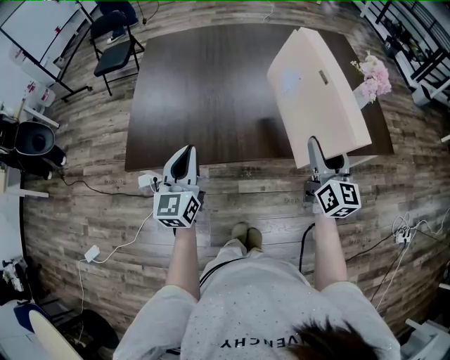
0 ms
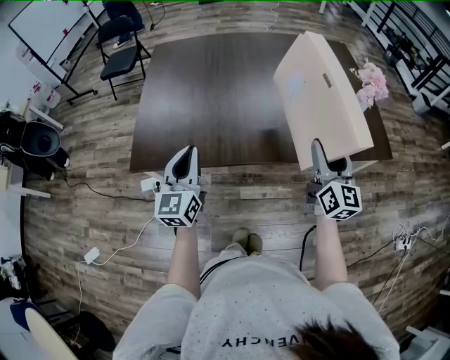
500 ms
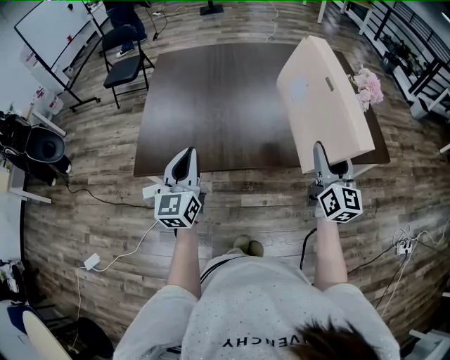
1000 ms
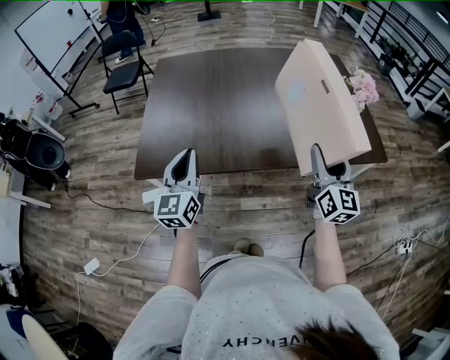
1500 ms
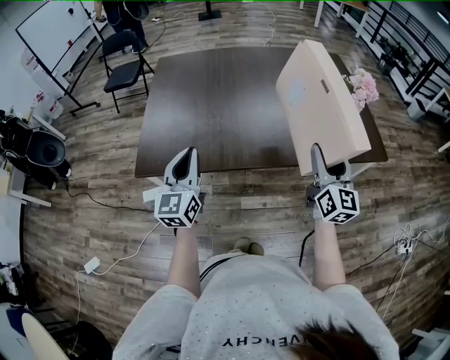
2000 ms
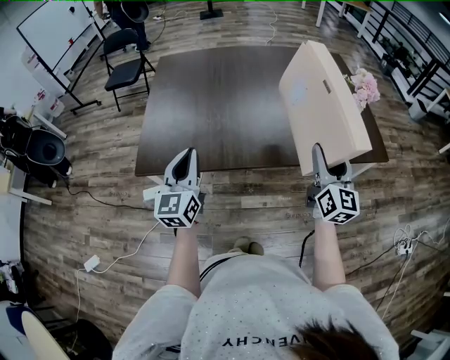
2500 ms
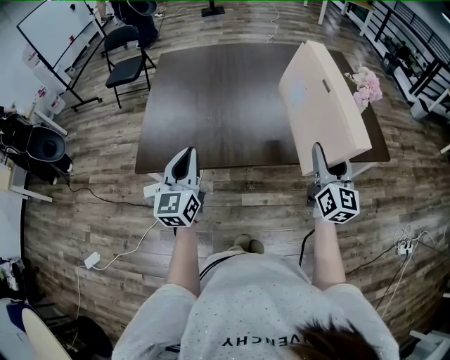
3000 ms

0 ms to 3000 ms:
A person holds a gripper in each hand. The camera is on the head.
0 ms to 1500 ms: The right gripper moves roughly 5 cm, while the left gripper moves about 5 cm.
1500 ms to 3000 ms: The grippers stay close to where they were, moving slightly.

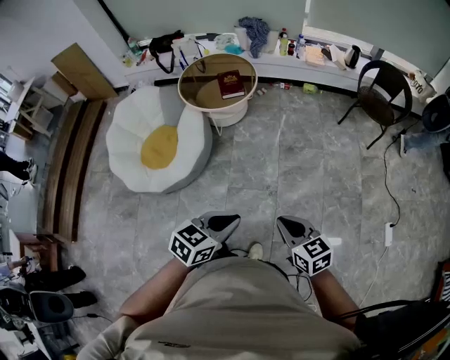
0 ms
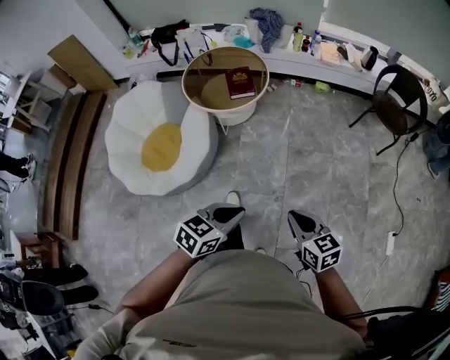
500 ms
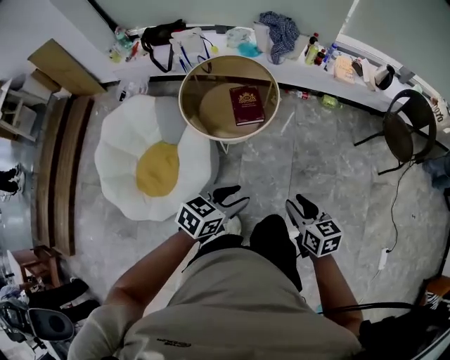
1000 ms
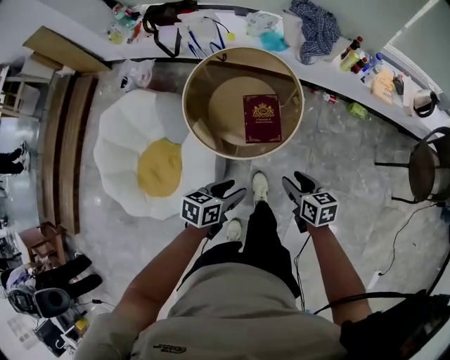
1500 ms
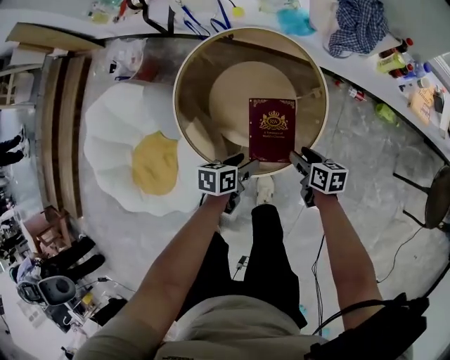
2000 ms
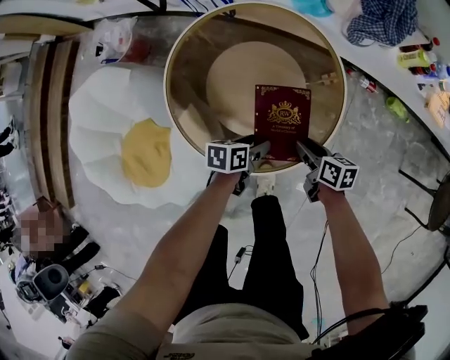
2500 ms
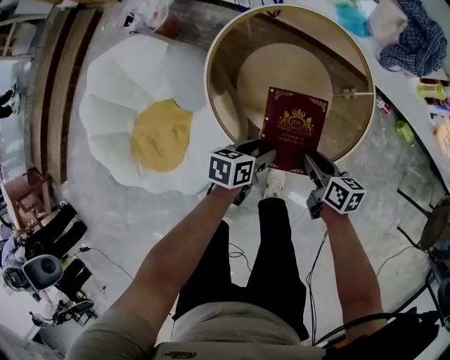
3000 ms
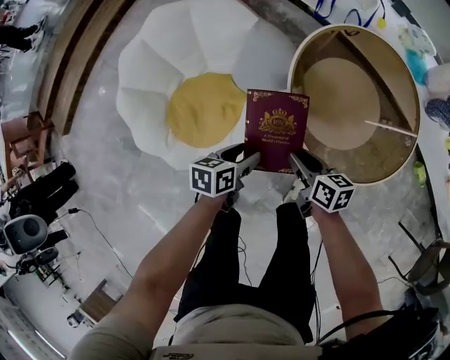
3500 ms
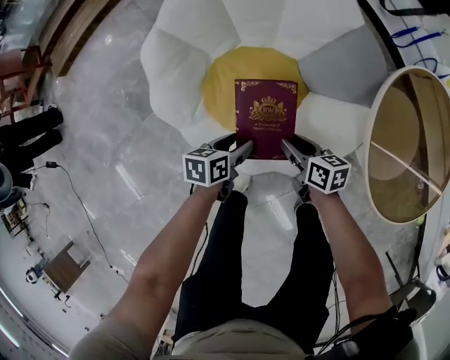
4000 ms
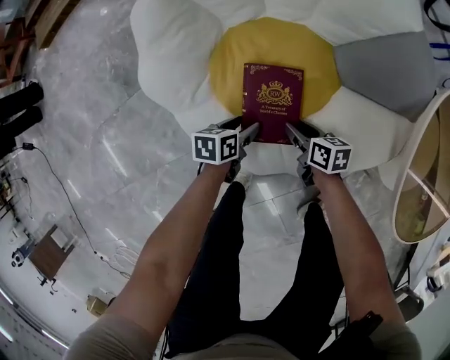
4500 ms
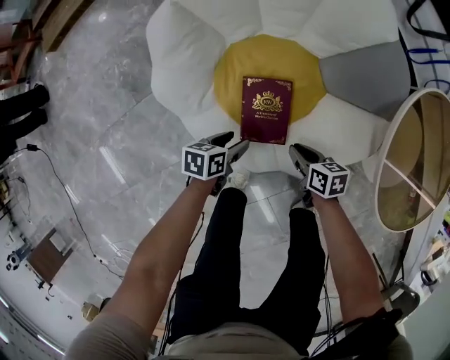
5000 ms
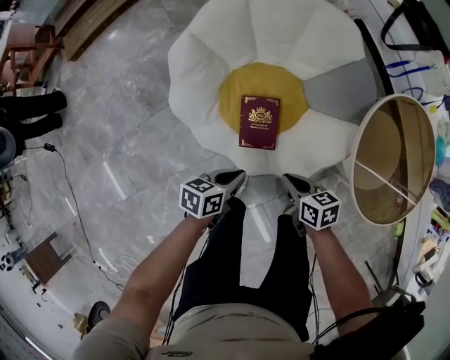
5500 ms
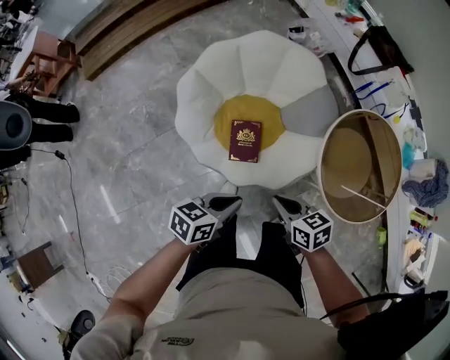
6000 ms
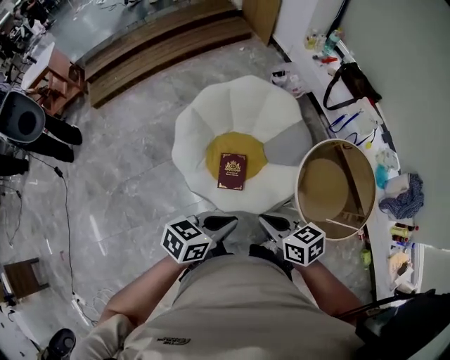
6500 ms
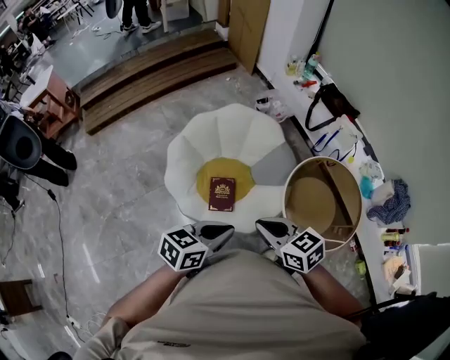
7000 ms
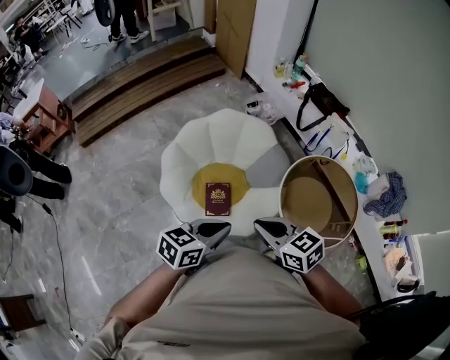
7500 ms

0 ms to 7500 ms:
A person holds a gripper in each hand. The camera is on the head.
0 ms to 2000 ms: The two grippers travel together, forward, roughly 90 cm. The left gripper twists some 50 degrees counterclockwise, seen from behind, and opens up. The right gripper changes its angle by roughly 40 degrees, and opens.
2000 ms to 4000 ms: The left gripper heads downward, covering some 5 cm, and moves roughly 5 cm to the right and comes back. Meanwhile the right gripper moves left and right over approximately 10 cm, changing direction 2 times, and closes up.
4000 ms to 5500 ms: The two grippers go approximately 10 cm upward. The right gripper closes its fingers. Meanwhile the left gripper closes up.
5500 ms to 7500 ms: The grippers both shift upward by roughly 40 cm. The left gripper swivels roughly 30 degrees. Meanwhile the right gripper swivels about 30 degrees.

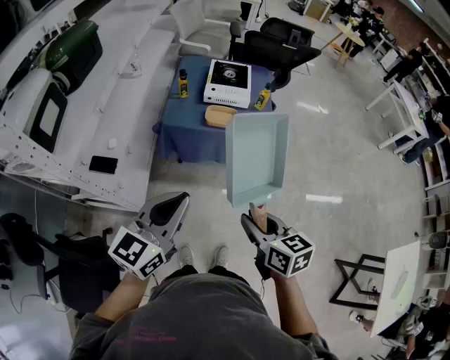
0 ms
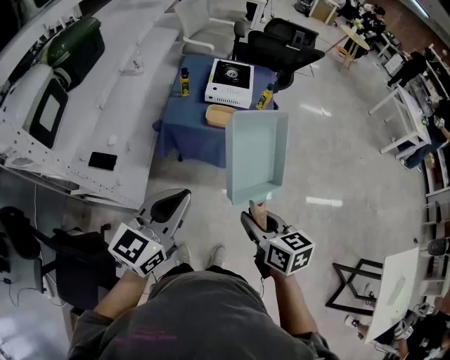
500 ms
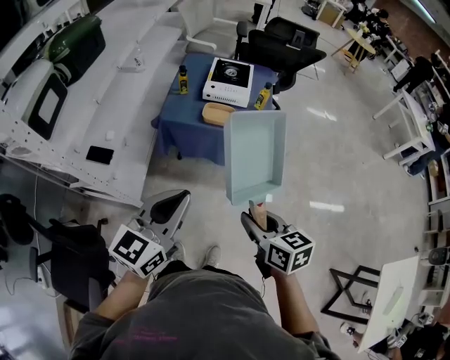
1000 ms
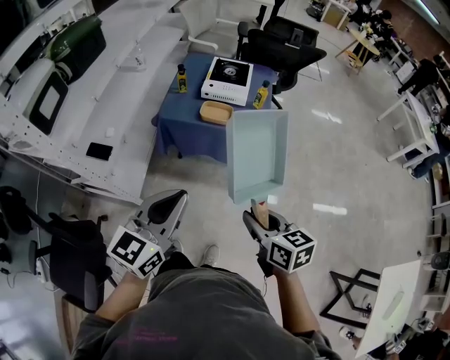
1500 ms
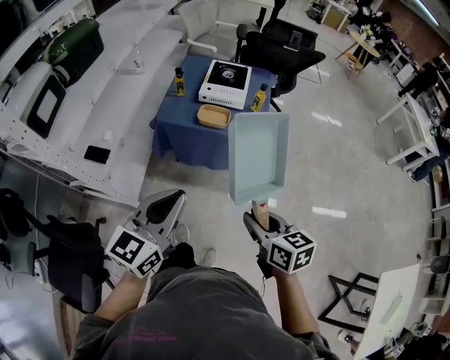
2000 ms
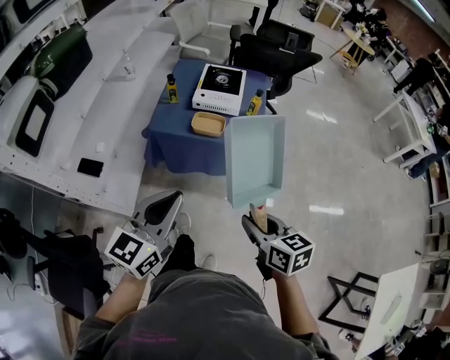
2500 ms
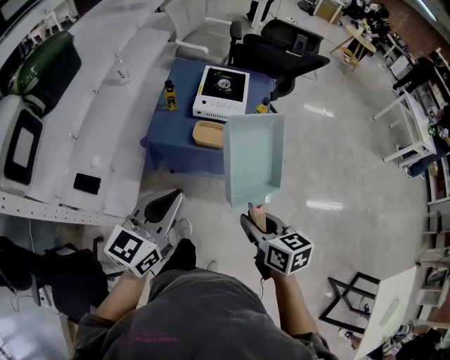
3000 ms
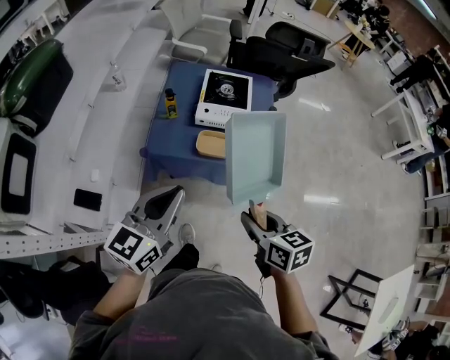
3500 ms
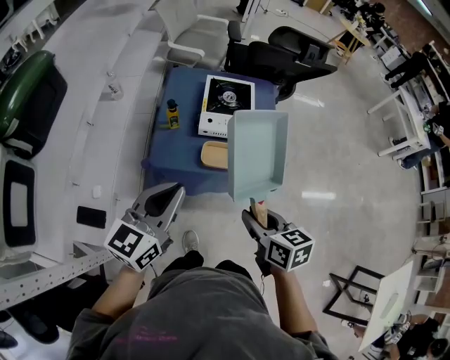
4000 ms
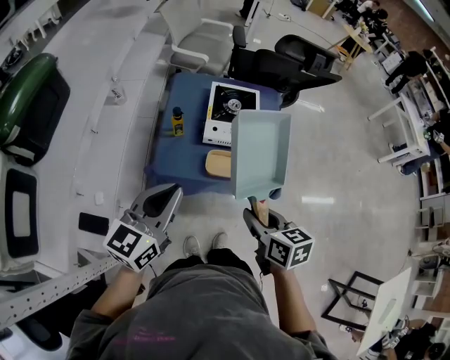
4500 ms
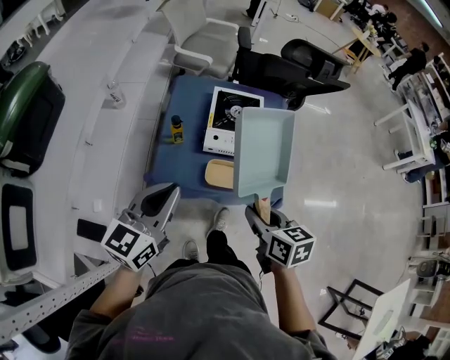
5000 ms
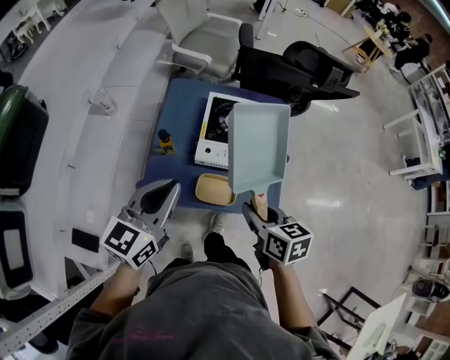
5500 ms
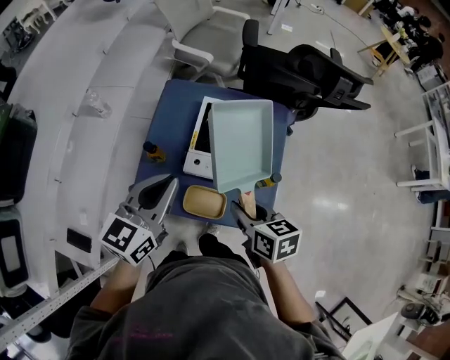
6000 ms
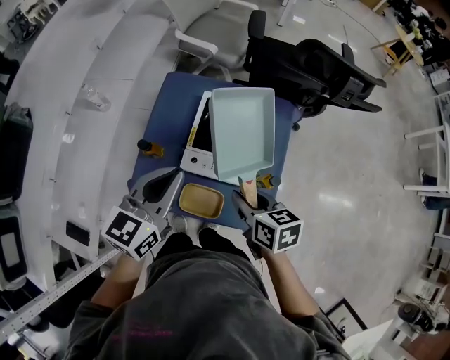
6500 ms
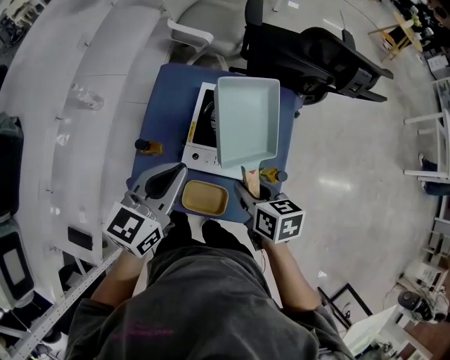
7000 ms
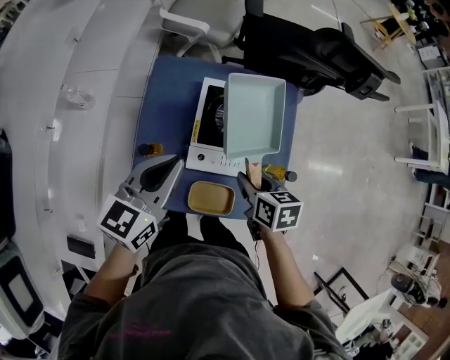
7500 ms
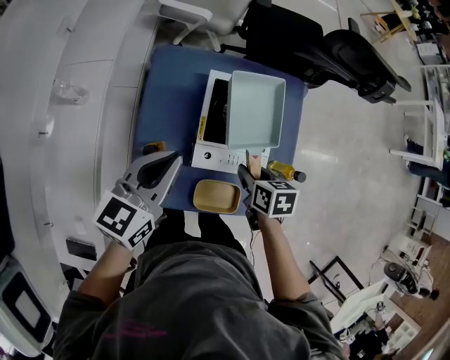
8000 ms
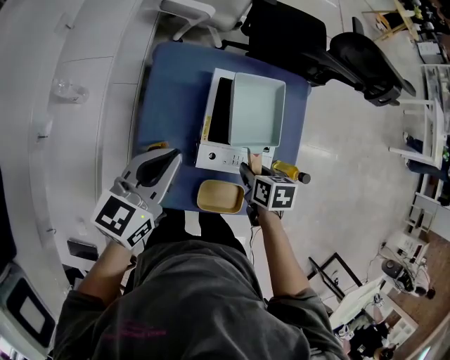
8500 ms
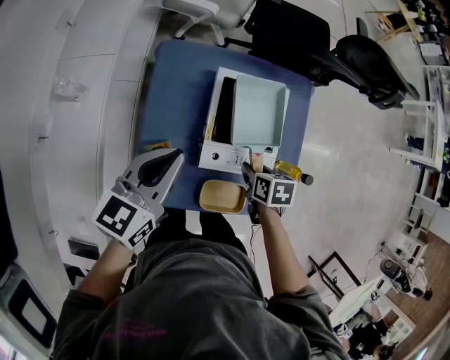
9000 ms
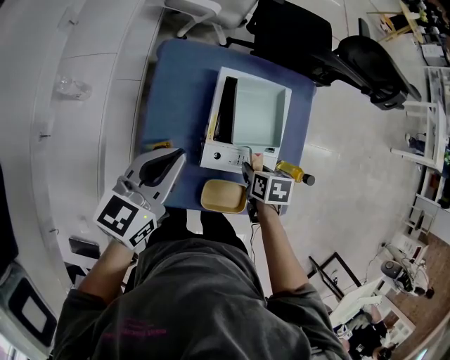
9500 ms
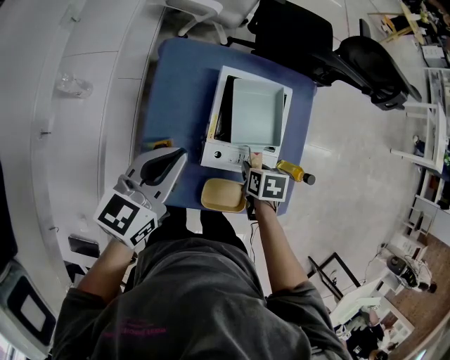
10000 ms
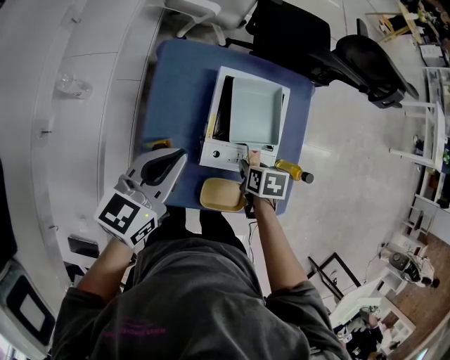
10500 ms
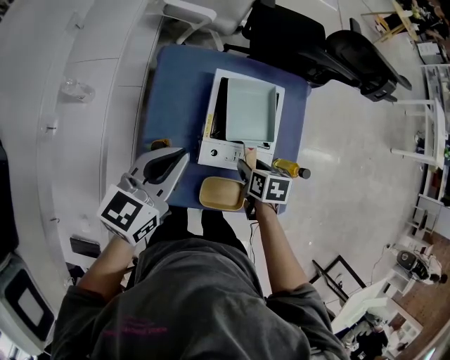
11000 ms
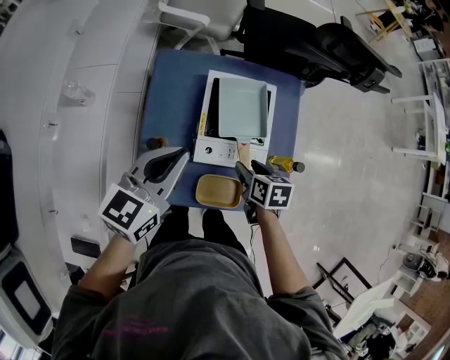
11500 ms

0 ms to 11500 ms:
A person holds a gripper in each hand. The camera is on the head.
0 ms to 2000 ms: The grippers both shift to the right by some 10 cm.
2000 ms to 4000 ms: Both grippers move forward, roughly 30 cm.
4000 ms to 6000 ms: The grippers both shift forward by approximately 25 cm.
6000 ms to 7500 ms: Both grippers travel together forward and downward, some 10 cm.
7500 ms to 9500 ms: The right gripper goes about 10 cm downward. The left gripper travels to the left by some 5 cm.
9500 ms to 11500 ms: The left gripper ends up about 5 cm from where it was; the right gripper ends up roughly 5 cm from where it was, and opens its fingers.

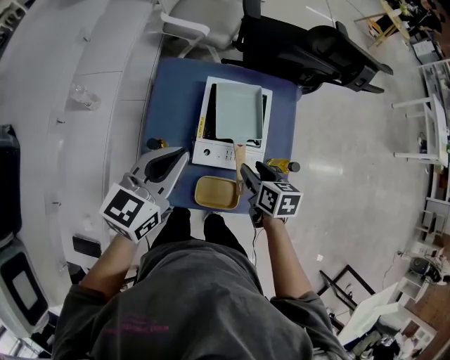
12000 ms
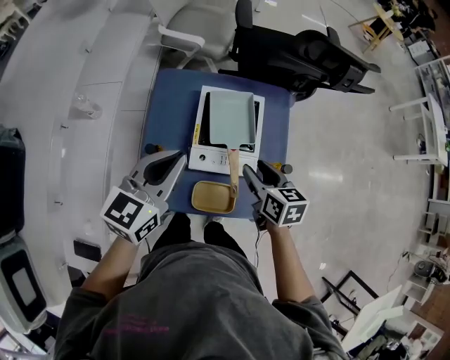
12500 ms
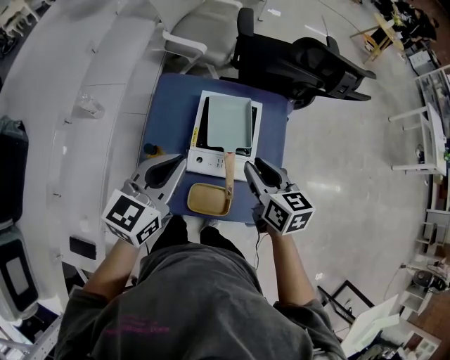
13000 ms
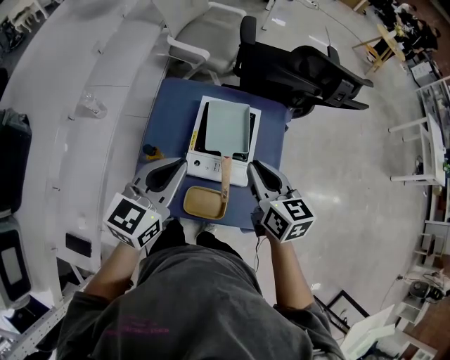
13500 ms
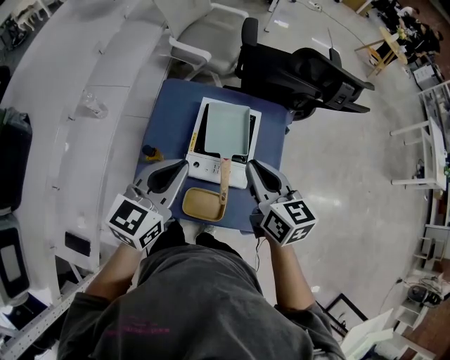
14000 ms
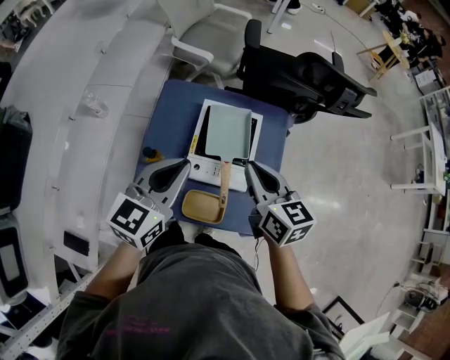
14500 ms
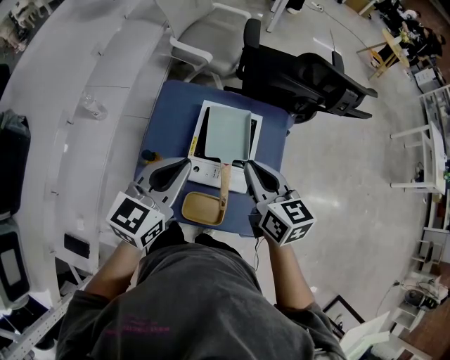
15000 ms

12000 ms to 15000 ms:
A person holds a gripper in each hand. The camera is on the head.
12000 ms to 13500 ms: The left gripper changes place by roughly 5 cm. Meanwhile the right gripper moves upward, roughly 15 cm, turns by some 30 degrees, and closes.
13500 ms to 15000 ms: There are only small adjustments of the grippers.

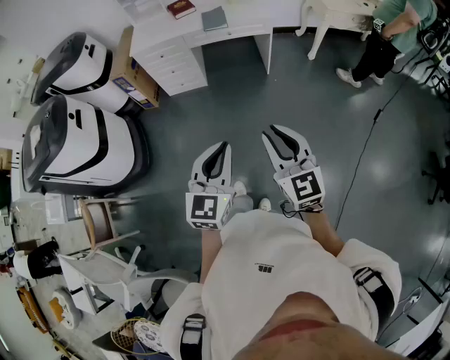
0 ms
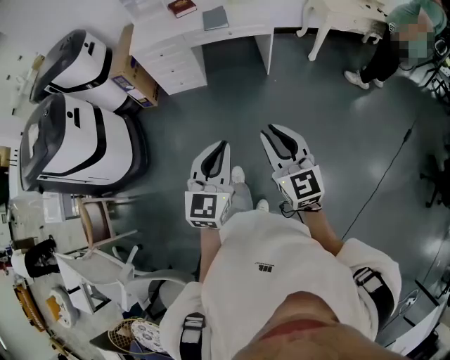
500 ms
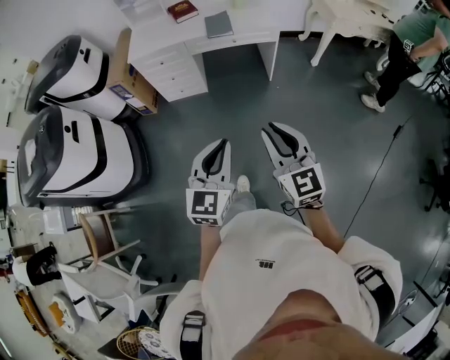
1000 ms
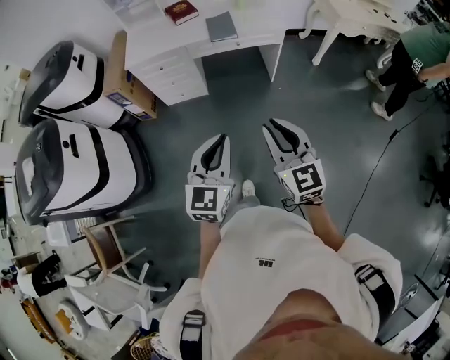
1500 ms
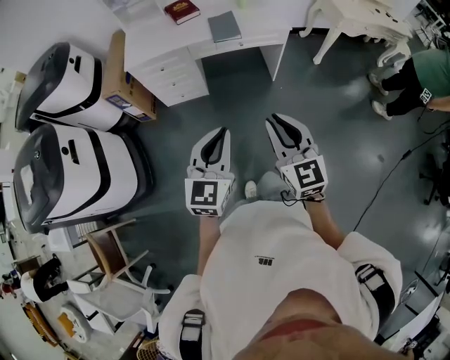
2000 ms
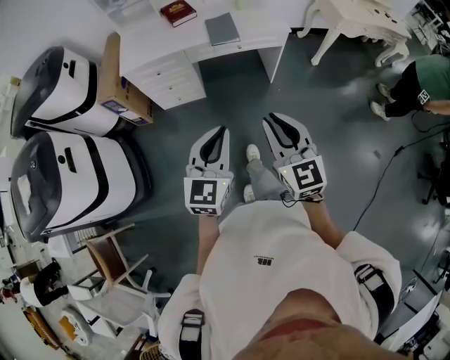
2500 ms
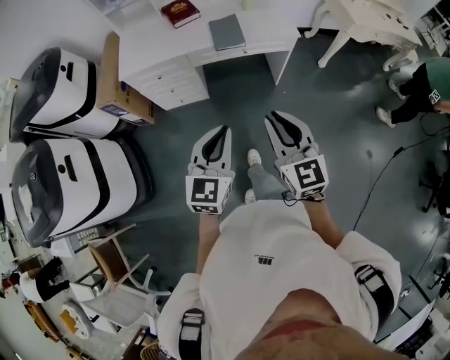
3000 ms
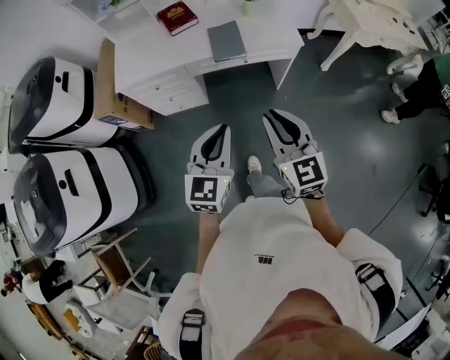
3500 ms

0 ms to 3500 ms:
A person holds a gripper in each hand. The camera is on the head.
0 ms to 2000 ms: Both grippers travel together forward, some 25 cm.
2000 ms to 3500 ms: The two grippers go some 25 cm forward.
